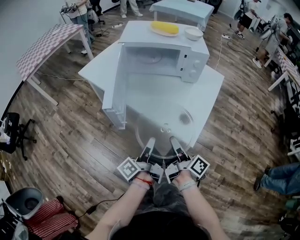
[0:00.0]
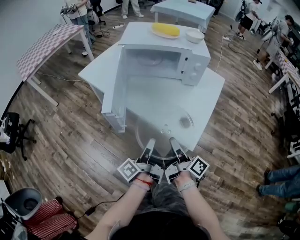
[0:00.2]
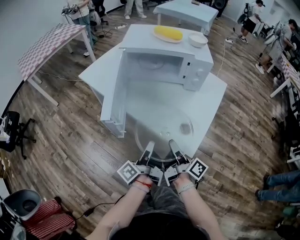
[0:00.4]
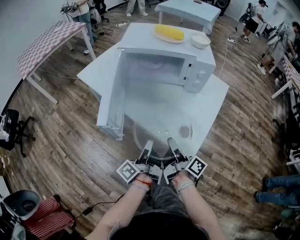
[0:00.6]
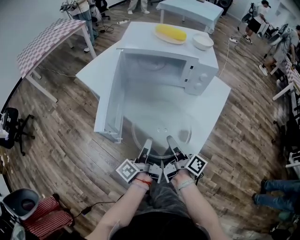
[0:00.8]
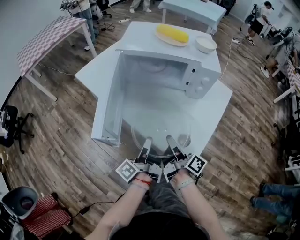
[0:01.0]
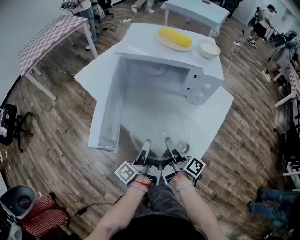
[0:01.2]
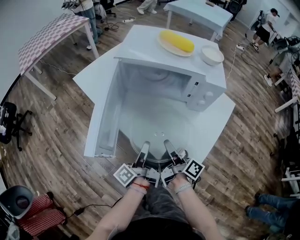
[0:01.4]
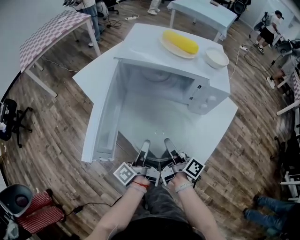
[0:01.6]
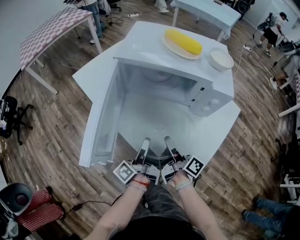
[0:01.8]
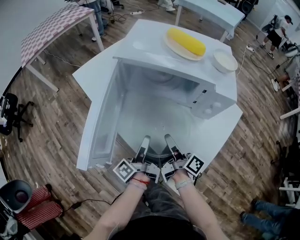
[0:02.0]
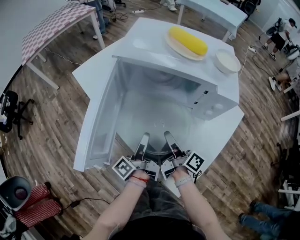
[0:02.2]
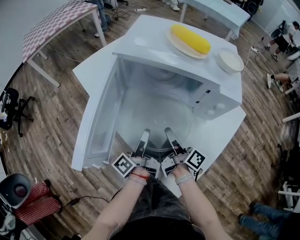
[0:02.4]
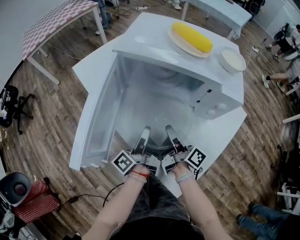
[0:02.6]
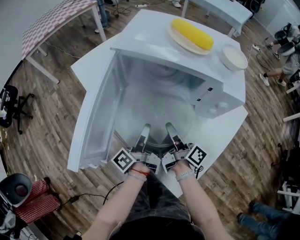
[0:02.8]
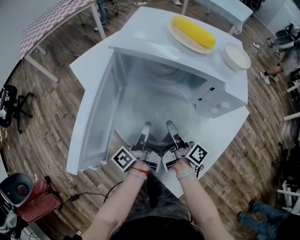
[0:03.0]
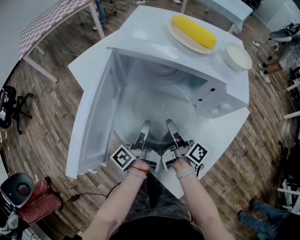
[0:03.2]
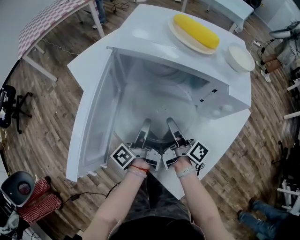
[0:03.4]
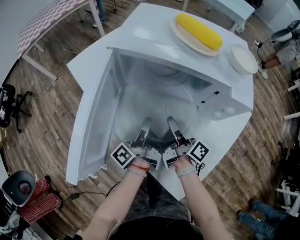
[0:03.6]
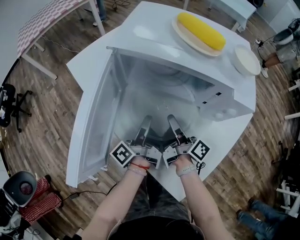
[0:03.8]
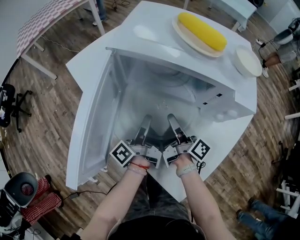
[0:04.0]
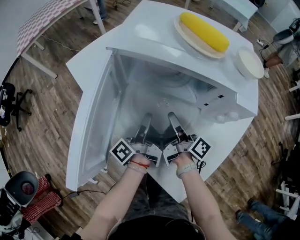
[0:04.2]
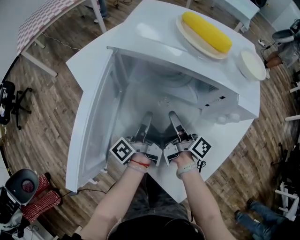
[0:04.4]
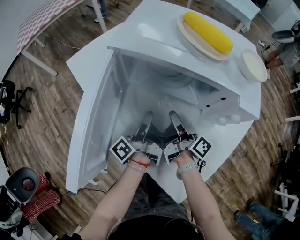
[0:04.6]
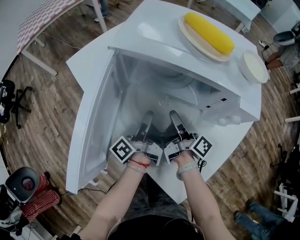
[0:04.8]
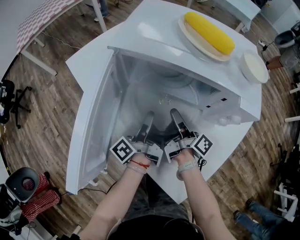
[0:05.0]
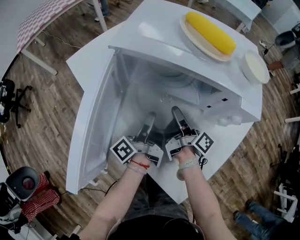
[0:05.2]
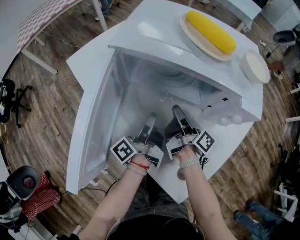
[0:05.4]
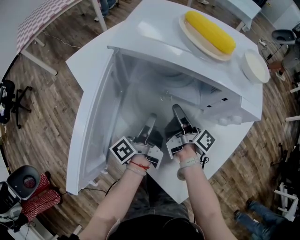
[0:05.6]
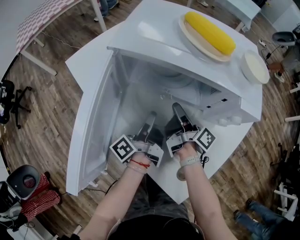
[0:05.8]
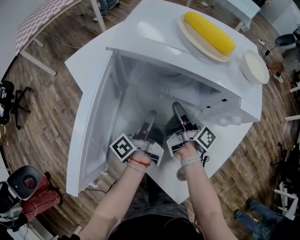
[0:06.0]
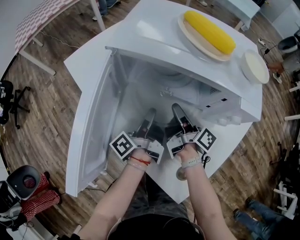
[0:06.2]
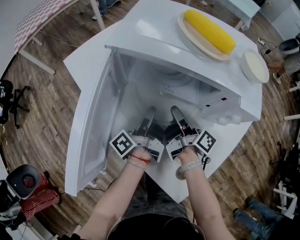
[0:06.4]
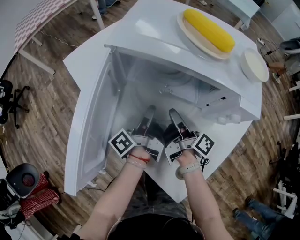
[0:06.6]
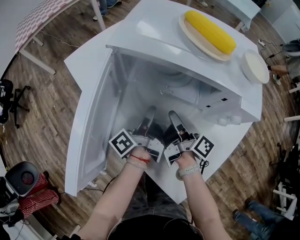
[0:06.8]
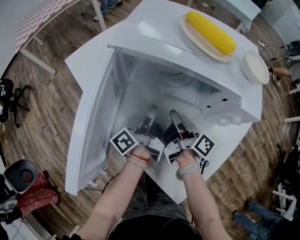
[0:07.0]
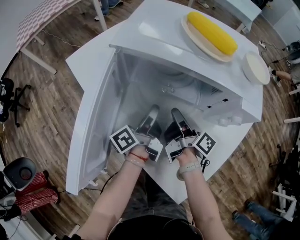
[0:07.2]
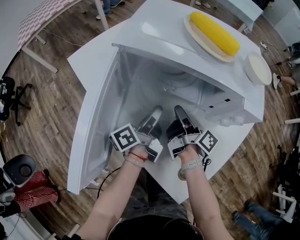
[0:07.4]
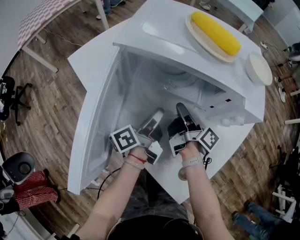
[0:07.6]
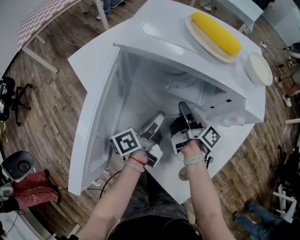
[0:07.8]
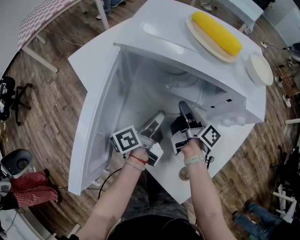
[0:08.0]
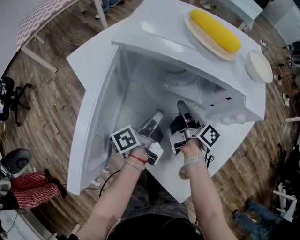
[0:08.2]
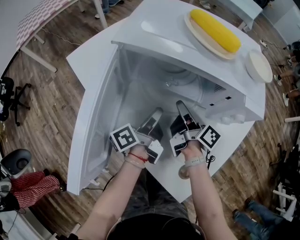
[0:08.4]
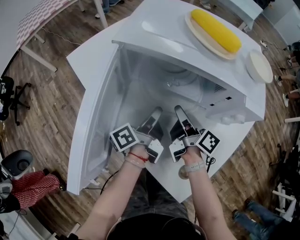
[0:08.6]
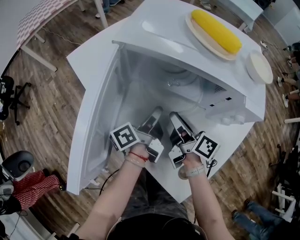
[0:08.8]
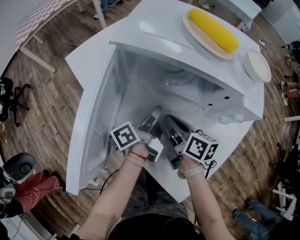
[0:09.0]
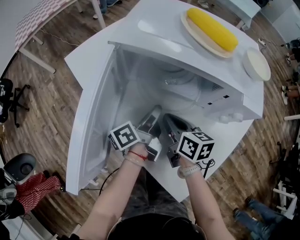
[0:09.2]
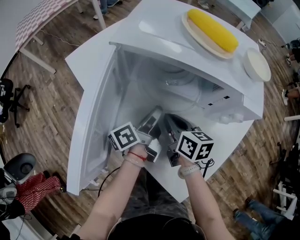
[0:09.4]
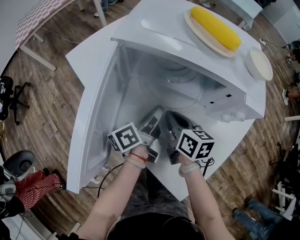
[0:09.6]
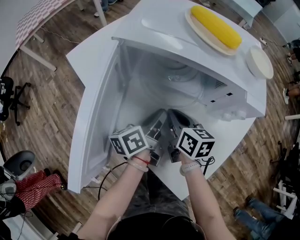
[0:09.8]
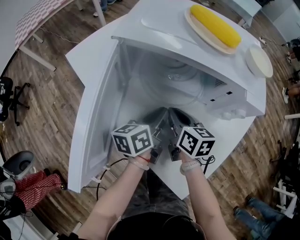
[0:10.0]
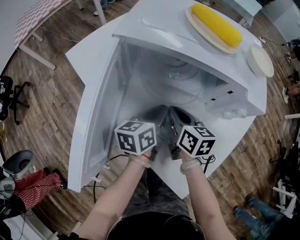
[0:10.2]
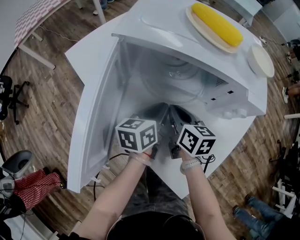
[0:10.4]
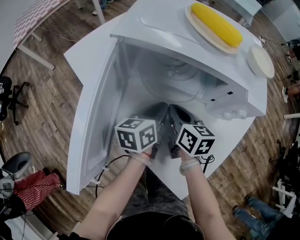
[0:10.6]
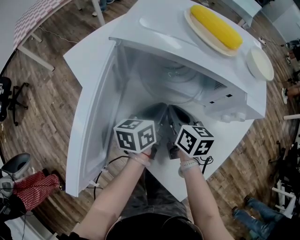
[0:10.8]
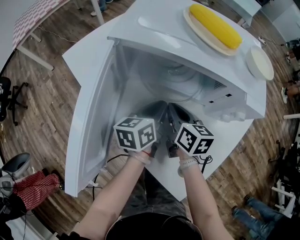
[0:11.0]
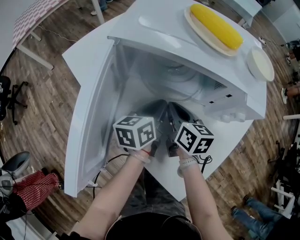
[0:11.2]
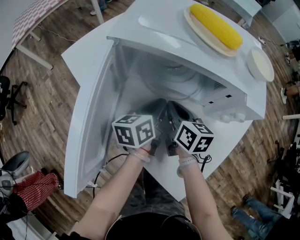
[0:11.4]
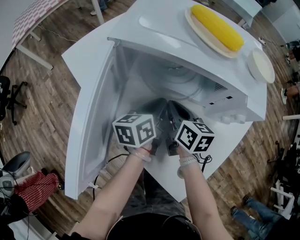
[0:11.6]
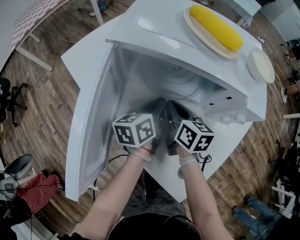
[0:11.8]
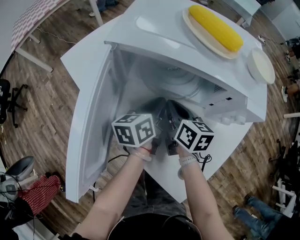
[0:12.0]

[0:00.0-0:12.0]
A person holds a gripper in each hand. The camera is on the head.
0:00.0 to 0:01.6: The right gripper changes place by approximately 20 cm.
0:01.6 to 0:03.0: The right gripper shifts by approximately 10 cm.
0:03.0 to 0:04.4: The right gripper moves about 5 cm.
0:07.6 to 0:09.0: The right gripper moves some 5 cm, and swivels about 40 degrees.

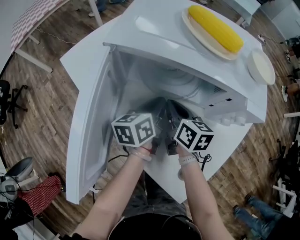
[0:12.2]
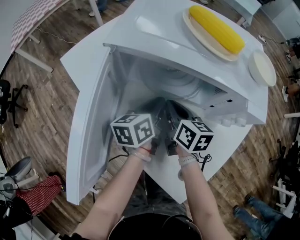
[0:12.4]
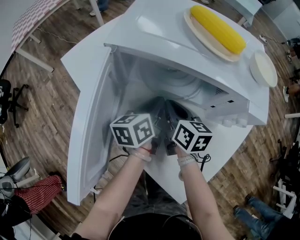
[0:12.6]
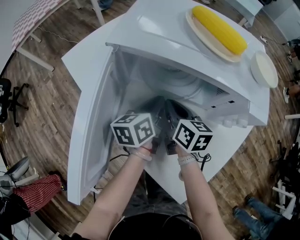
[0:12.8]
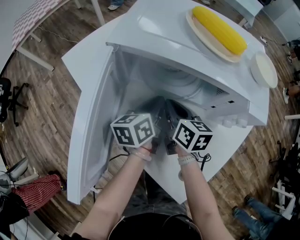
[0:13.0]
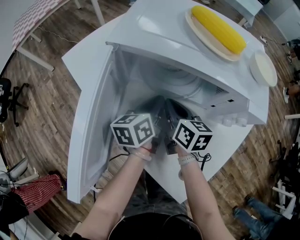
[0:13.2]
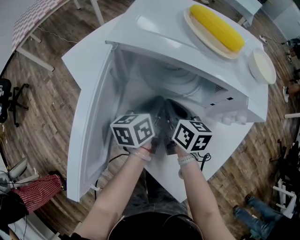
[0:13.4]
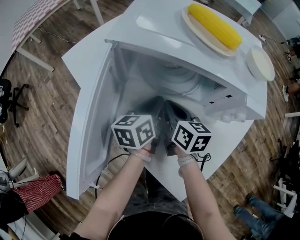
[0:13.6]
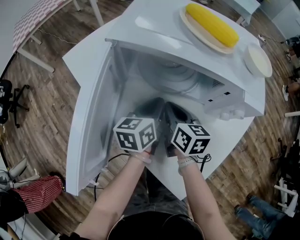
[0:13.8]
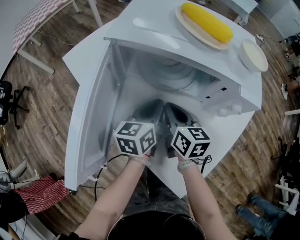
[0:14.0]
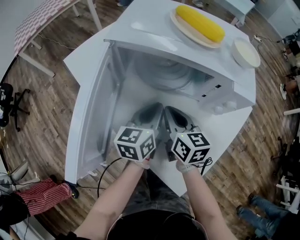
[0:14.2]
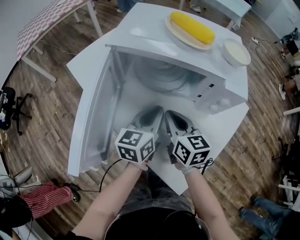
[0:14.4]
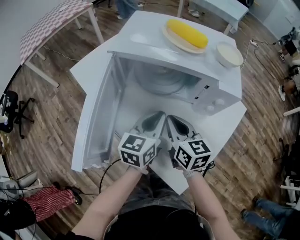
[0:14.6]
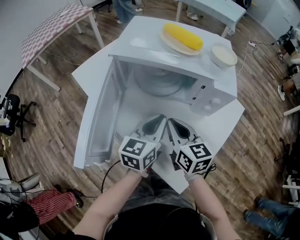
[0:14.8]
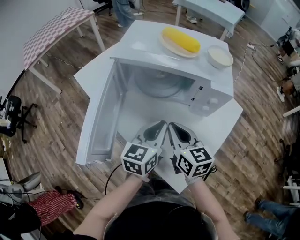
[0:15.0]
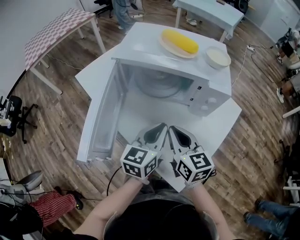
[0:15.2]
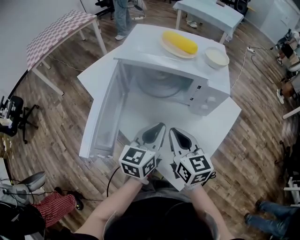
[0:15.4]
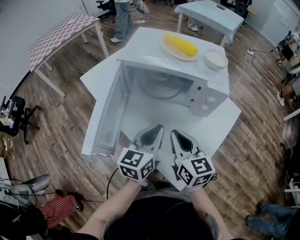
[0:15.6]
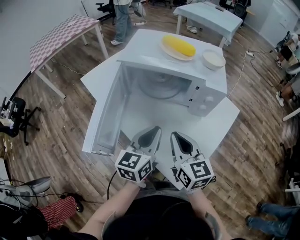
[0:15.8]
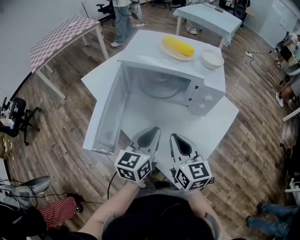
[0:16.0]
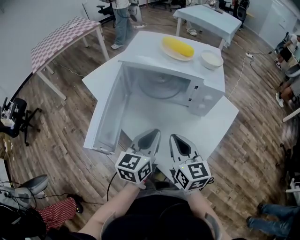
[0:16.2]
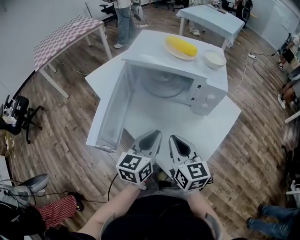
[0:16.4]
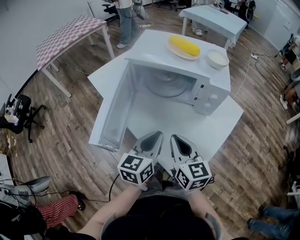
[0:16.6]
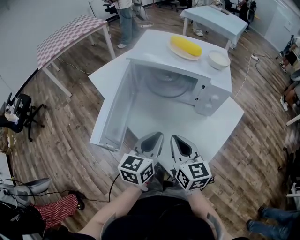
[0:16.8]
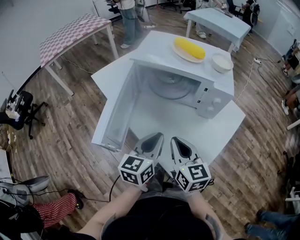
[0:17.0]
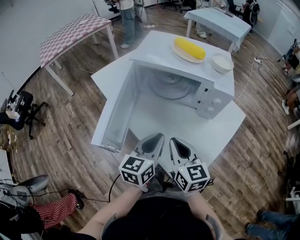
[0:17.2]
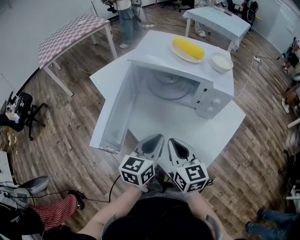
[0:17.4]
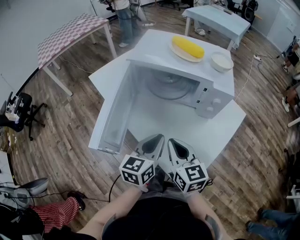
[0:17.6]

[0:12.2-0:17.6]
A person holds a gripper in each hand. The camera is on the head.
0:13.6 to 0:15.0: The right gripper ends up roughly 15 cm from where it was.
0:15.0 to 0:16.2: The right gripper moves approximately 10 cm.

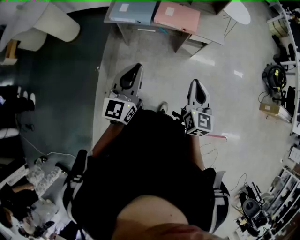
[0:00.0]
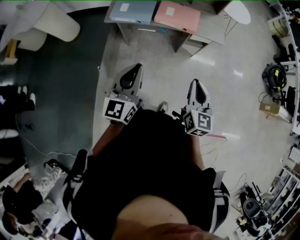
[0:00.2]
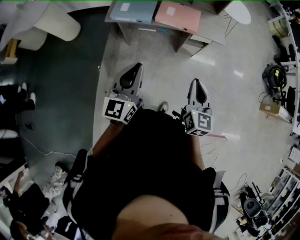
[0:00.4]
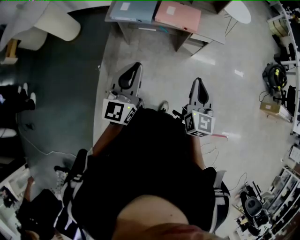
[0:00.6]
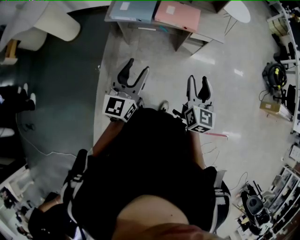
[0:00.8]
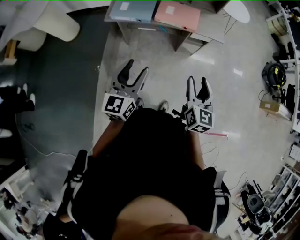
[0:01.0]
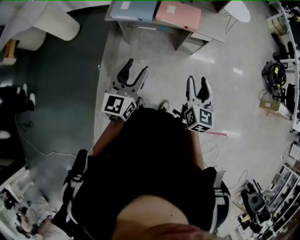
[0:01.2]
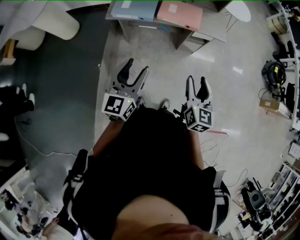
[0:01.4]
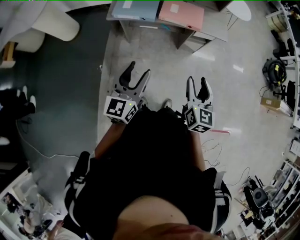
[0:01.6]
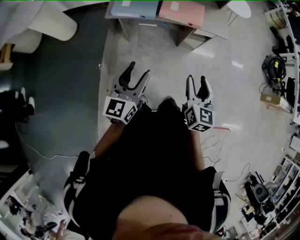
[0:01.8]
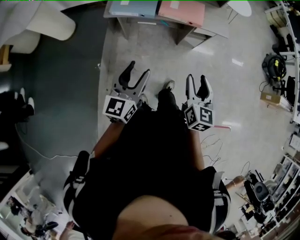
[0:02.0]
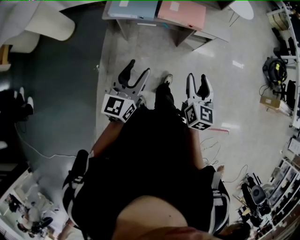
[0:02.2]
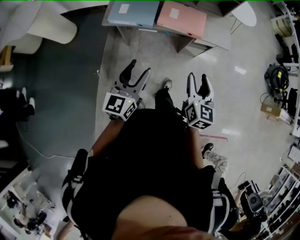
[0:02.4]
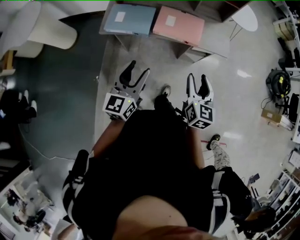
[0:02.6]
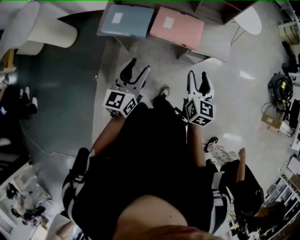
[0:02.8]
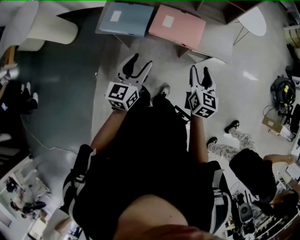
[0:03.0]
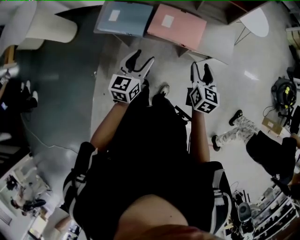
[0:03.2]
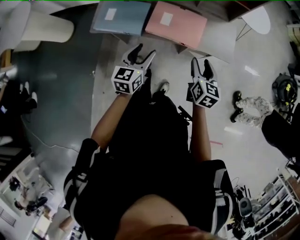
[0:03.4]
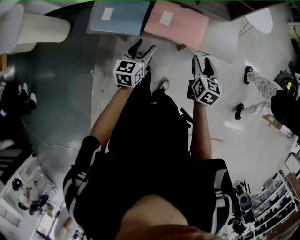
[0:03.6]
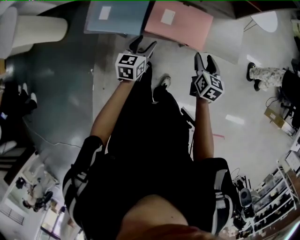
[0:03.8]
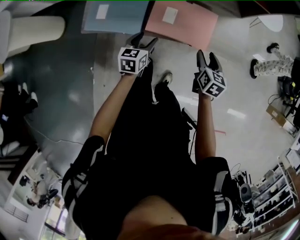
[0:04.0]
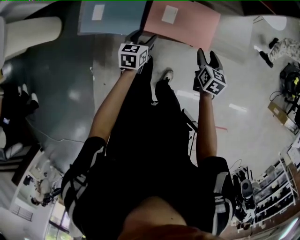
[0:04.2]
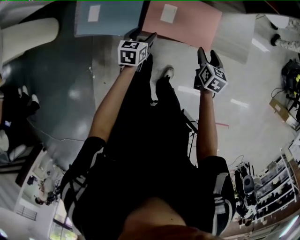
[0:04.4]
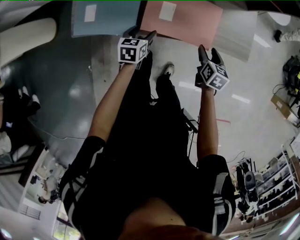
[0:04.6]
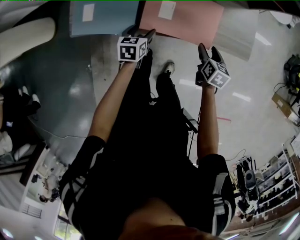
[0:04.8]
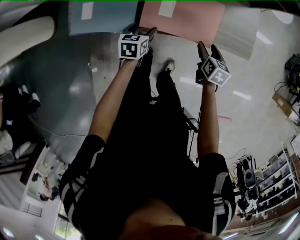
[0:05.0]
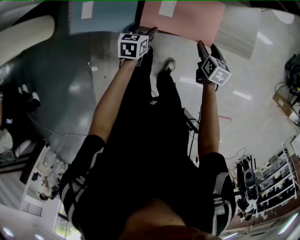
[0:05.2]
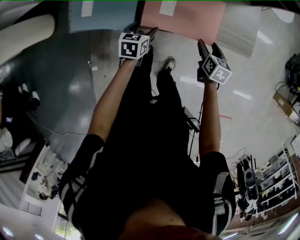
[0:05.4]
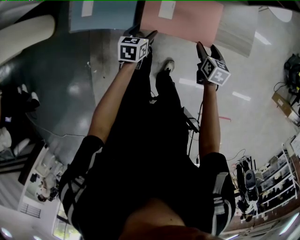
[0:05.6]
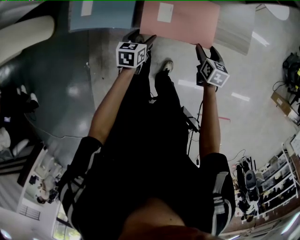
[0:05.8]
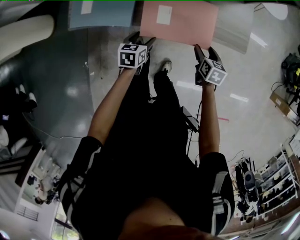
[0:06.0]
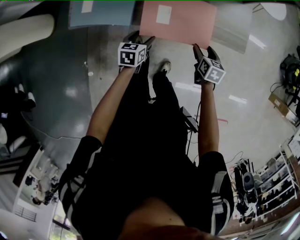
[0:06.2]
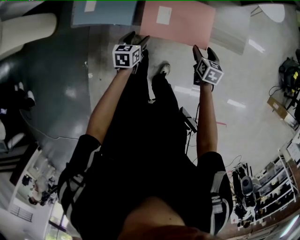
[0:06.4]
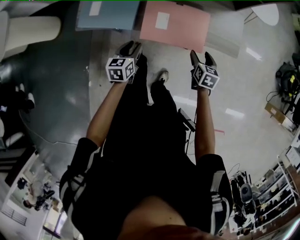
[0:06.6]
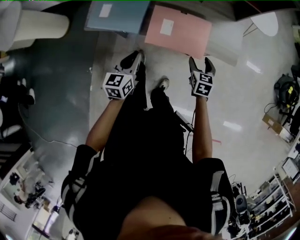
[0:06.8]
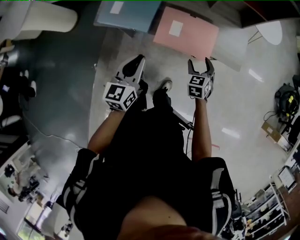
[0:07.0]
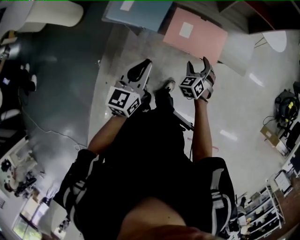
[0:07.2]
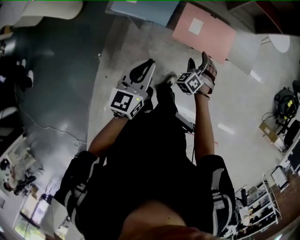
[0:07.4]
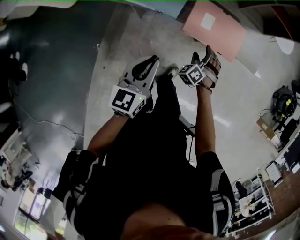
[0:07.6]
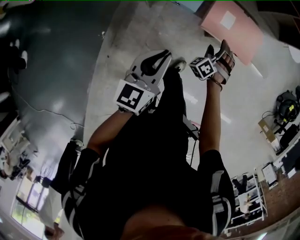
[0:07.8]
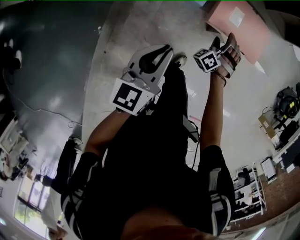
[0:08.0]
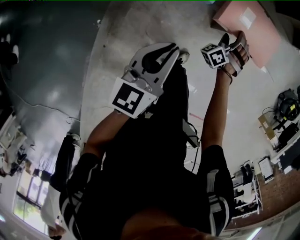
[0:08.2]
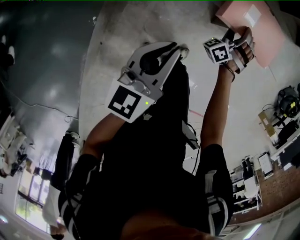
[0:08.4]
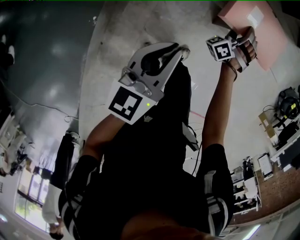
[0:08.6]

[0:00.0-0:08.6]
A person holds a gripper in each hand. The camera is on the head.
0:00.0 to 0:01.4: The left gripper opens its fingers. Meanwhile the right gripper opens its fingers.
0:01.4 to 0:02.8: Both grippers move forward, some 20 cm.
0:02.8 to 0:04.4: Both grippers travel together downward and forward, approximately 35 cm. The left gripper points its fingers roughly 40 degrees further downward; the right gripper rotates roughly 30 degrees.
0:04.4 to 0:05.8: The left gripper travels backward by about 5 cm.
0:05.8 to 0:07.2: The right gripper travels to the left, upward and backward by approximately 15 cm, and twists roughly 60 degrees counterclockwise, seen from behind; the left gripper heads upward and backward, covering roughly 30 cm, angles its fingers upward, by approximately 30 degrees, and closes.
0:07.2 to 0:08.6: The right gripper shifts some 20 cm downward, to the left and forward, and turns by approximately 40 degrees; the left gripper goes approximately 15 cm downward, to the left and backward.
